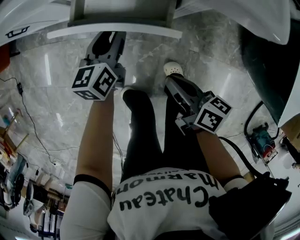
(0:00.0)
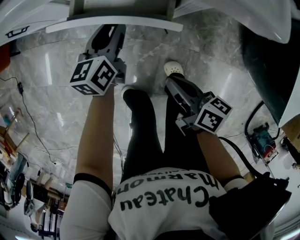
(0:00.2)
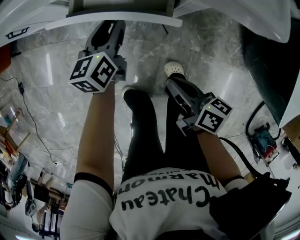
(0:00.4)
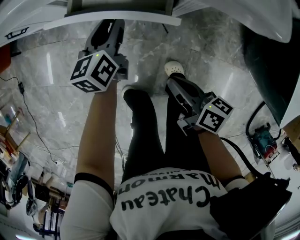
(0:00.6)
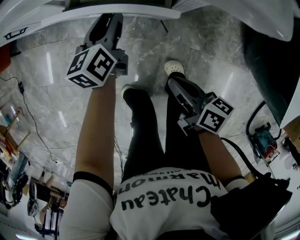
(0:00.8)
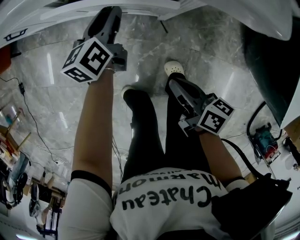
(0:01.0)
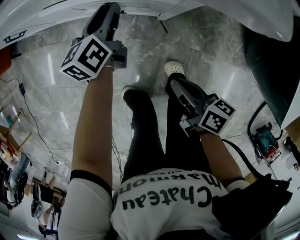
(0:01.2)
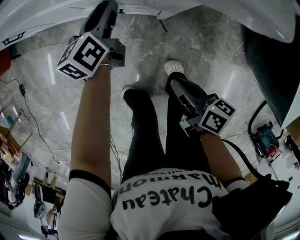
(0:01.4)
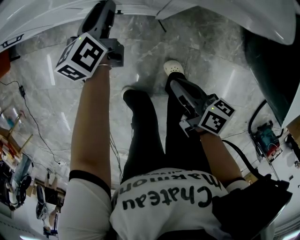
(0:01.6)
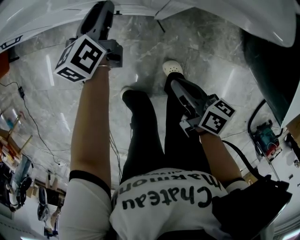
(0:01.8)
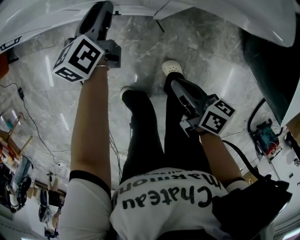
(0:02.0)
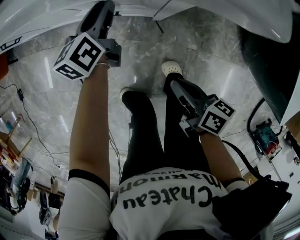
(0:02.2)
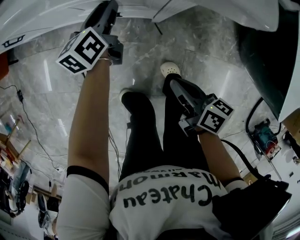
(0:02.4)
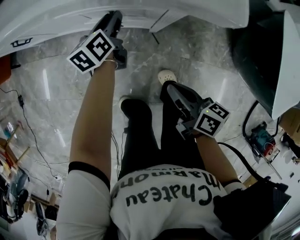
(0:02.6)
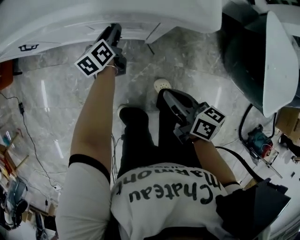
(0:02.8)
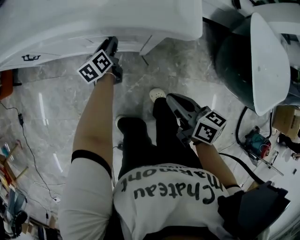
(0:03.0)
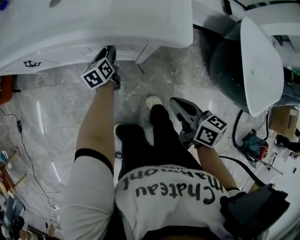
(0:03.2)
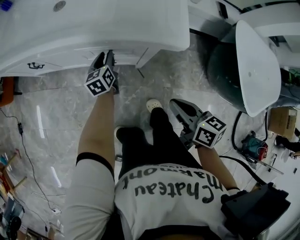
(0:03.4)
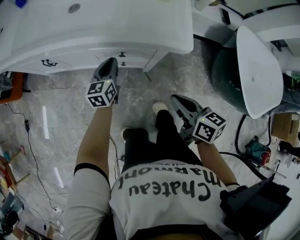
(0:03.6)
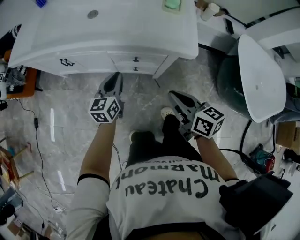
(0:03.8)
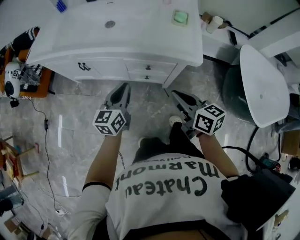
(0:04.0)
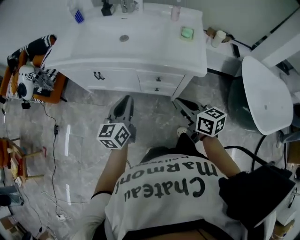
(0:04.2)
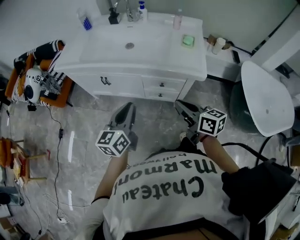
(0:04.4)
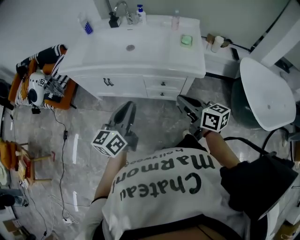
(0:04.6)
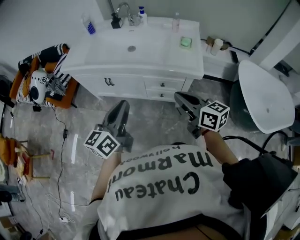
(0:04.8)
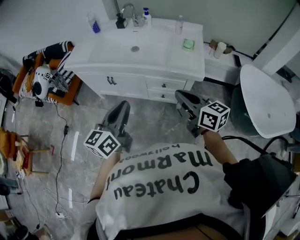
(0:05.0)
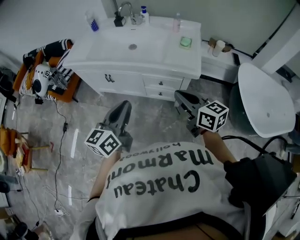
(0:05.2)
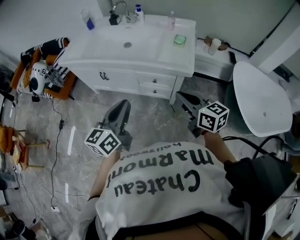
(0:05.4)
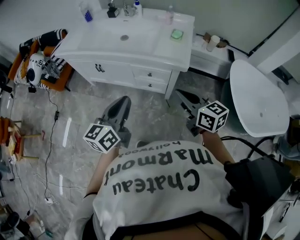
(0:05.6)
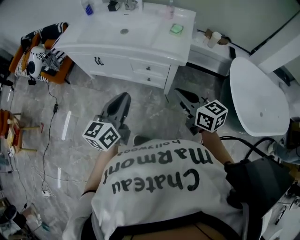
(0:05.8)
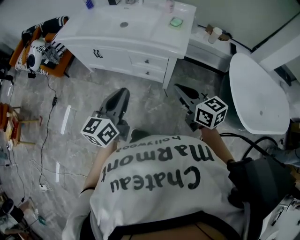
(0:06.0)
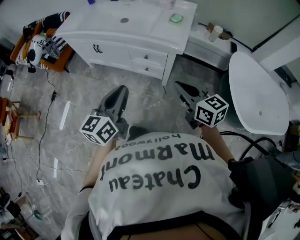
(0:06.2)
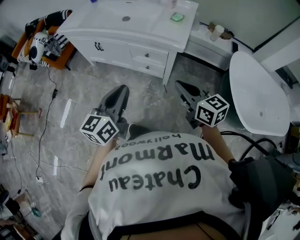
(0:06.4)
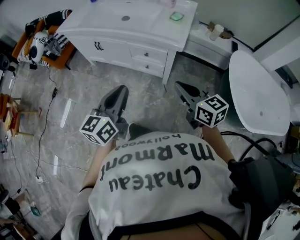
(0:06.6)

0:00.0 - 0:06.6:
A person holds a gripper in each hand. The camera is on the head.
0:00.0 - 0:01.6: The left gripper shifts roughly 10 cm forward.
0:01.6 - 0:03.2: The right gripper goes roughly 15 cm upward, and turns by roughly 20 degrees.
0:03.2 - 0:05.0: The right gripper heads upward and to the left, covering roughly 30 cm, and changes its angle by approximately 30 degrees; the left gripper shifts about 50 cm upward, backward and to the left, swivels about 30 degrees, and closes its fingers.
0:05.0 - 0:06.6: The right gripper is displaced to the right and backward by about 20 cm, while the left gripper moves backward and to the right, approximately 20 cm.

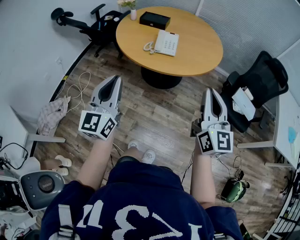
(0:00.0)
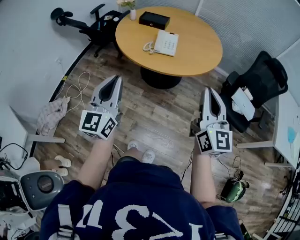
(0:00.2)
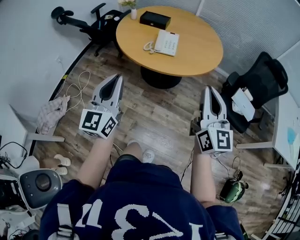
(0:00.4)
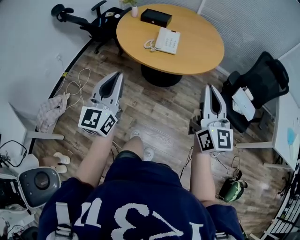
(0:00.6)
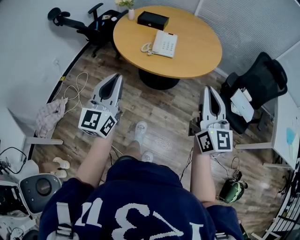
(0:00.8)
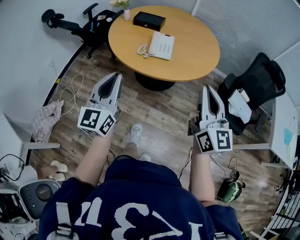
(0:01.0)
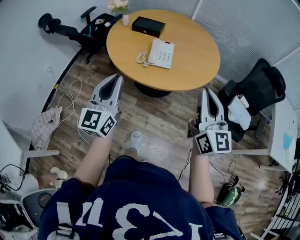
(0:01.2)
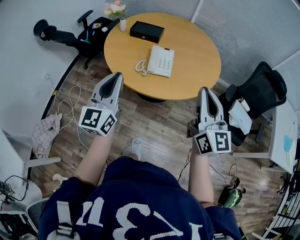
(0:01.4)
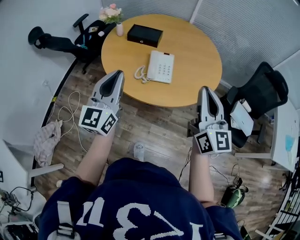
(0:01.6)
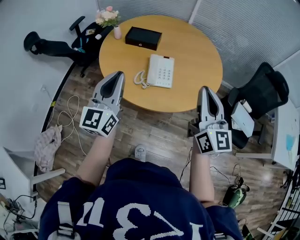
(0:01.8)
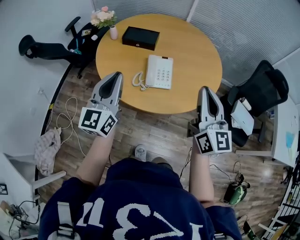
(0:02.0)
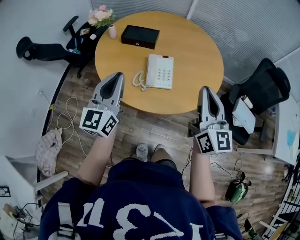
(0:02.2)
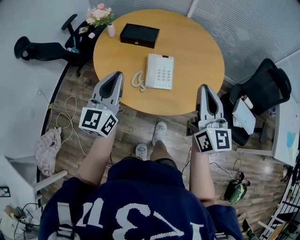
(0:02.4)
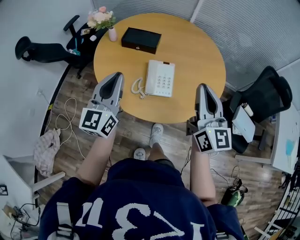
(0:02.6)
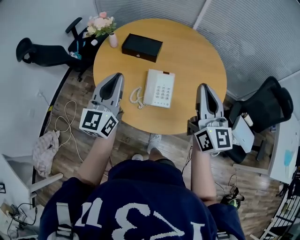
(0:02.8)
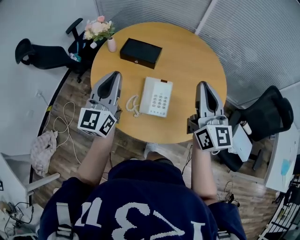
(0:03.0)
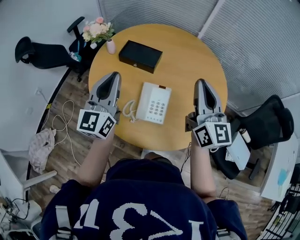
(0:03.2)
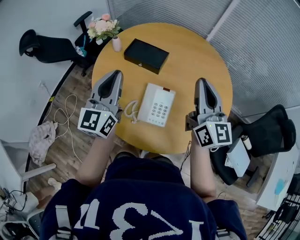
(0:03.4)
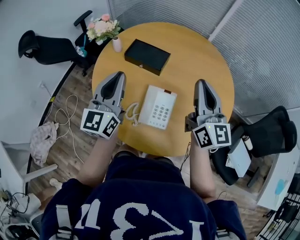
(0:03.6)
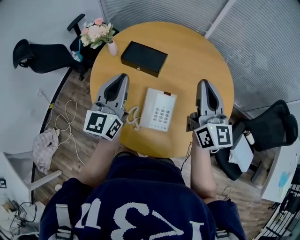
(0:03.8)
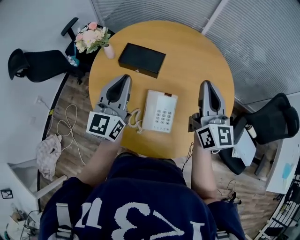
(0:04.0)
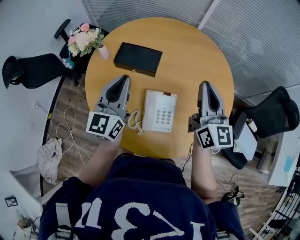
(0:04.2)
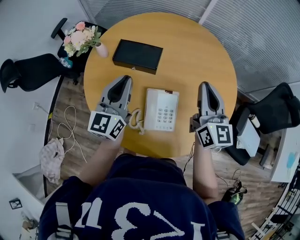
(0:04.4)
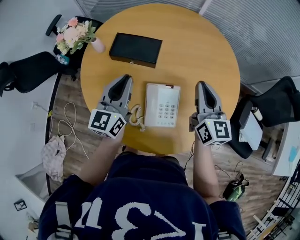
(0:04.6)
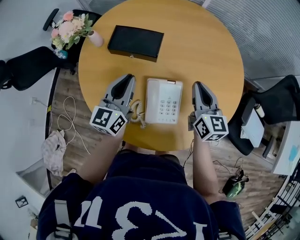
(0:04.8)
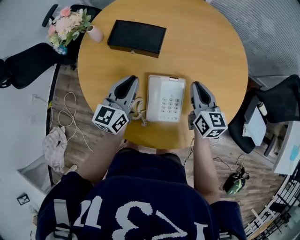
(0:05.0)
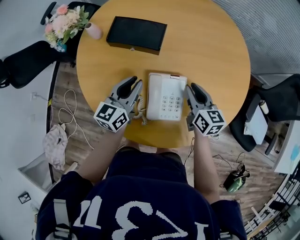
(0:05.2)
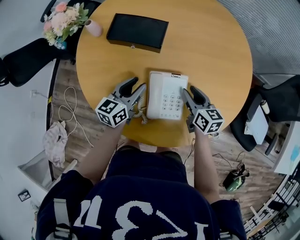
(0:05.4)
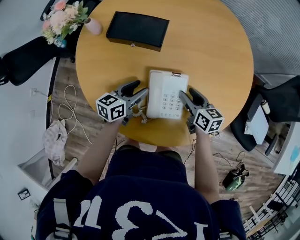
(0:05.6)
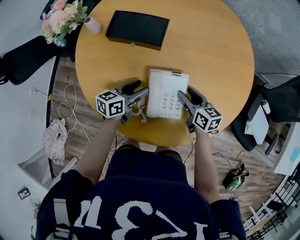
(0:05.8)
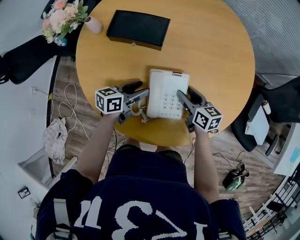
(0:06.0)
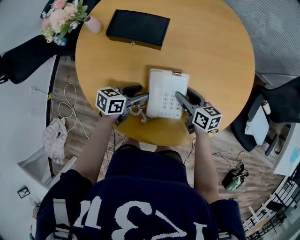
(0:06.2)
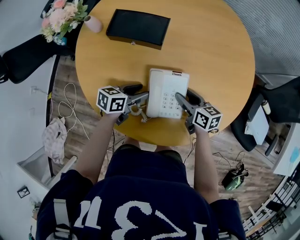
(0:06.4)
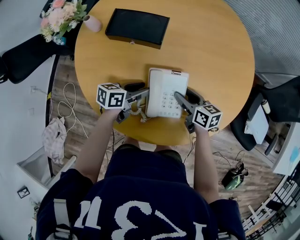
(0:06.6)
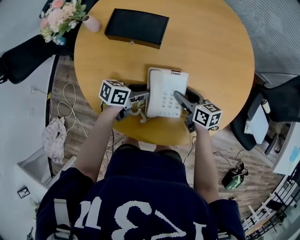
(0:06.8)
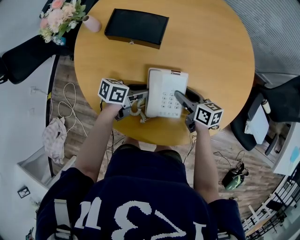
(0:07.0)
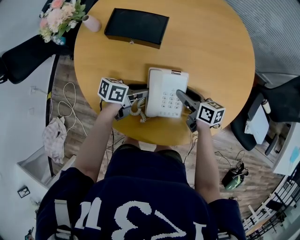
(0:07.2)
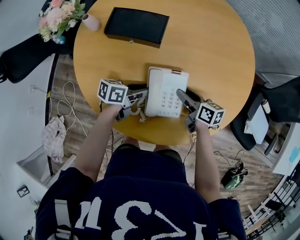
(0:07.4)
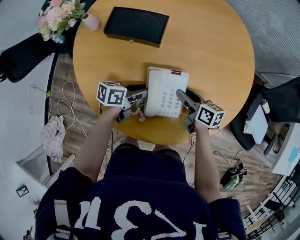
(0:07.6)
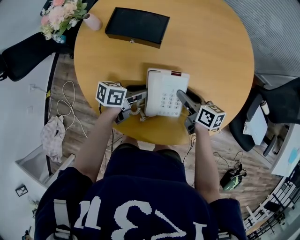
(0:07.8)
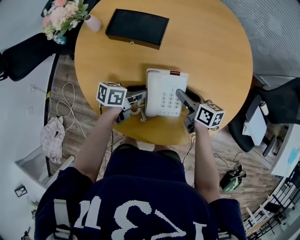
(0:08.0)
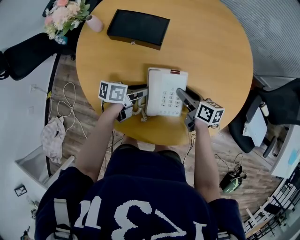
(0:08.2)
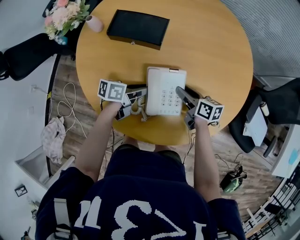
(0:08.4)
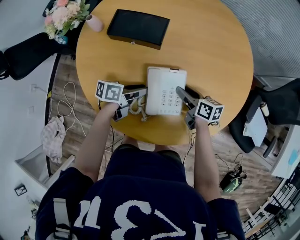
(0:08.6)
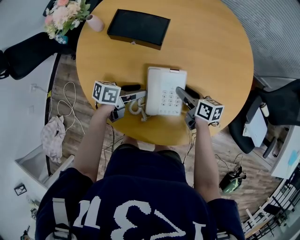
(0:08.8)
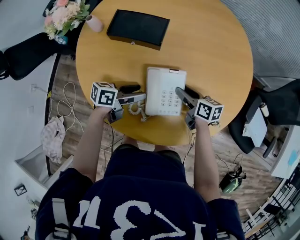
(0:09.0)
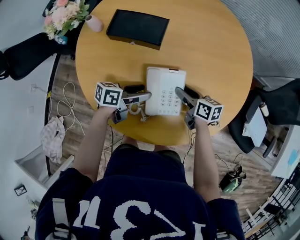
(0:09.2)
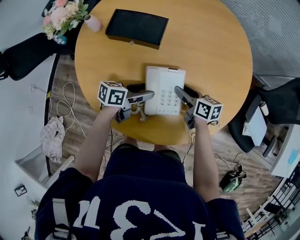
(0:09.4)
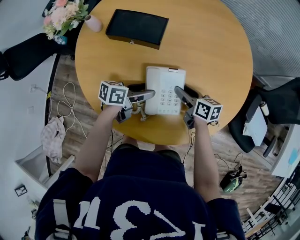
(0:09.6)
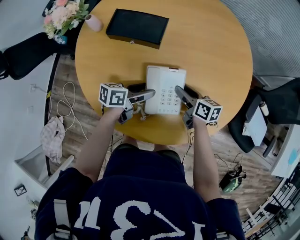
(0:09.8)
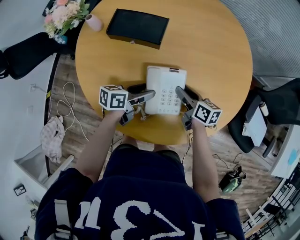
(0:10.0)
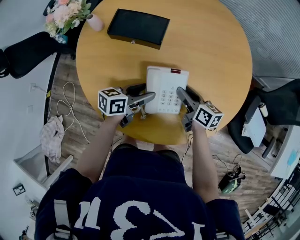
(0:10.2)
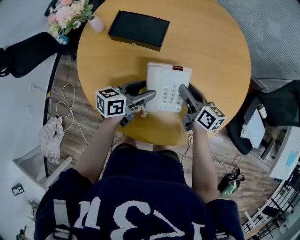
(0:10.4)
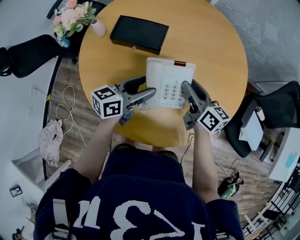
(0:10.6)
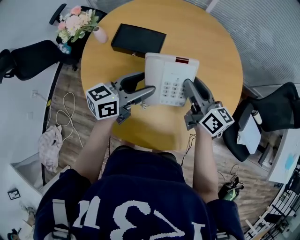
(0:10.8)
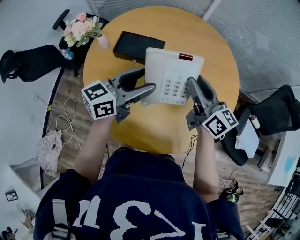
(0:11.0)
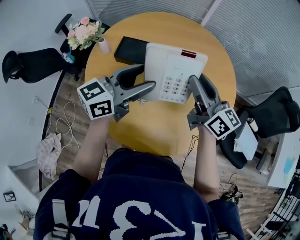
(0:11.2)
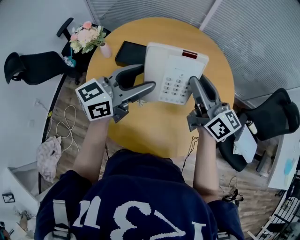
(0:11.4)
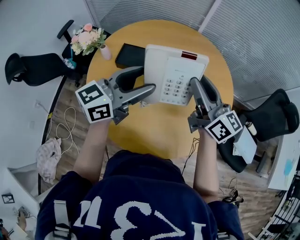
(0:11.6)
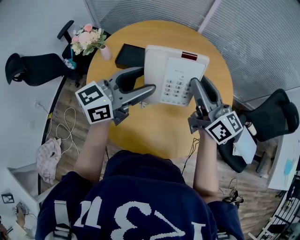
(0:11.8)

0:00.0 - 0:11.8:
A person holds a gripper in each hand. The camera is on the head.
0:00.0 - 0:01.4: The grippers both shift forward by approximately 20 cm.
0:01.4 - 0:03.0: Both grippers move forward, roughly 30 cm.
0:03.0 - 0:04.4: The grippers both shift forward and downward by roughly 15 cm.
0:04.4 - 0:06.0: The two grippers go approximately 25 cm downward. The left gripper rotates some 60 degrees, and opens its fingers. The right gripper angles its fingers downward, by about 30 degrees, and opens.
0:06.0 - 0:08.8: The grippers move only a little.
0:08.8 - 0:10.4: Both grippers travel together upward, about 5 cm.
0:10.4 - 0:11.8: Both grippers travel together upward, some 25 cm. The right gripper rotates about 30 degrees; the left gripper changes its angle by some 40 degrees.

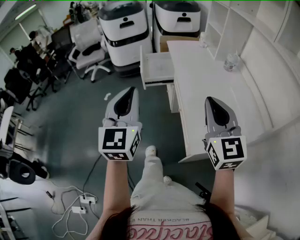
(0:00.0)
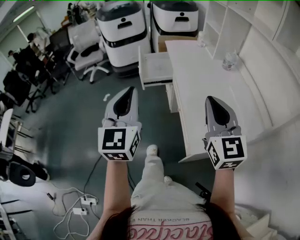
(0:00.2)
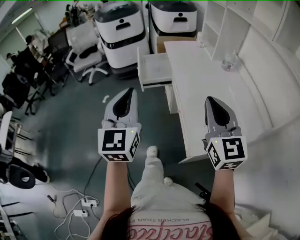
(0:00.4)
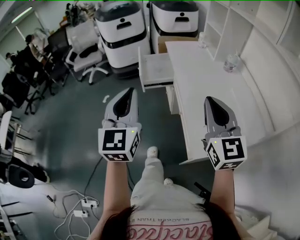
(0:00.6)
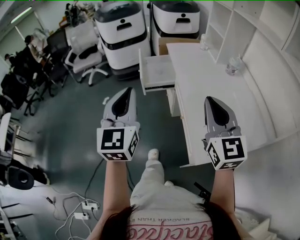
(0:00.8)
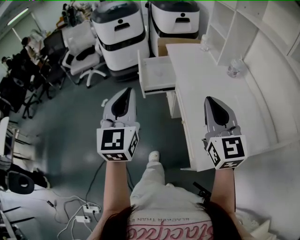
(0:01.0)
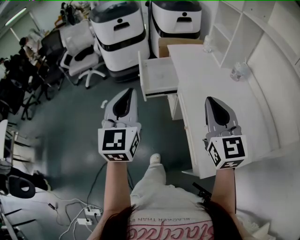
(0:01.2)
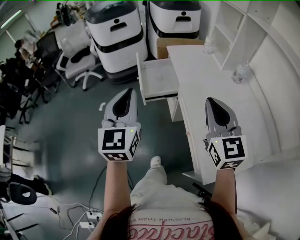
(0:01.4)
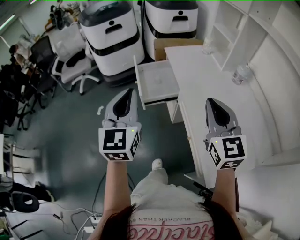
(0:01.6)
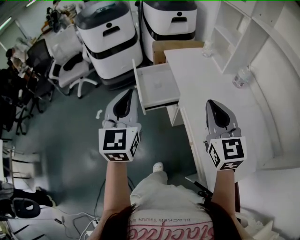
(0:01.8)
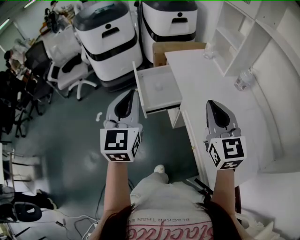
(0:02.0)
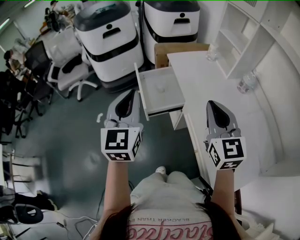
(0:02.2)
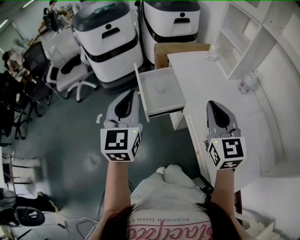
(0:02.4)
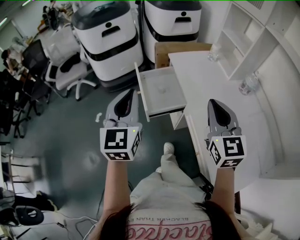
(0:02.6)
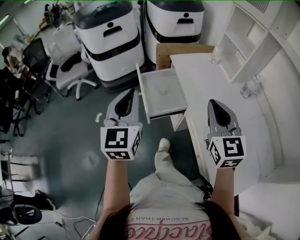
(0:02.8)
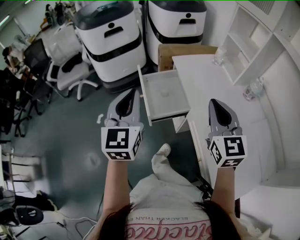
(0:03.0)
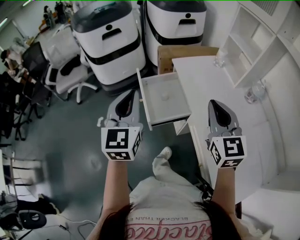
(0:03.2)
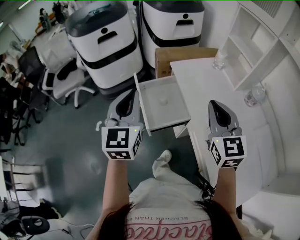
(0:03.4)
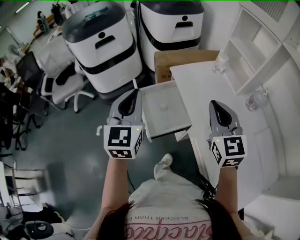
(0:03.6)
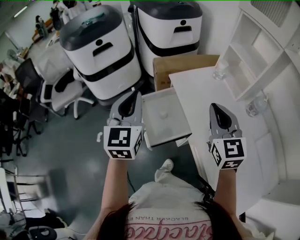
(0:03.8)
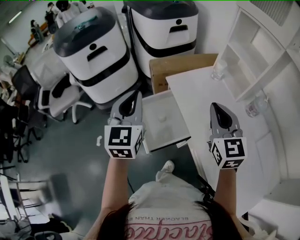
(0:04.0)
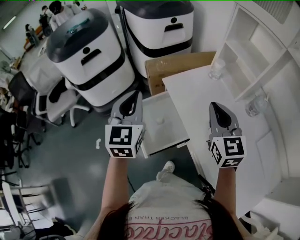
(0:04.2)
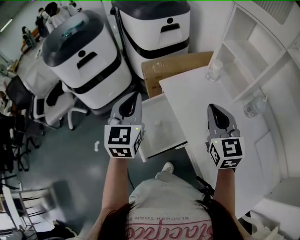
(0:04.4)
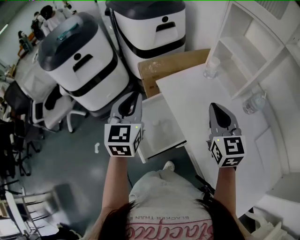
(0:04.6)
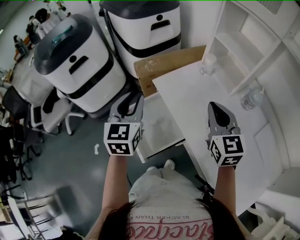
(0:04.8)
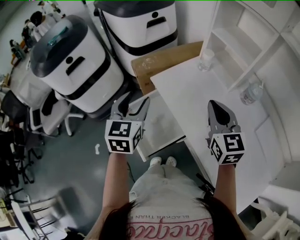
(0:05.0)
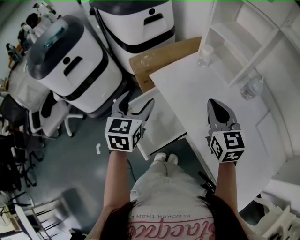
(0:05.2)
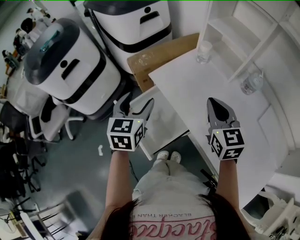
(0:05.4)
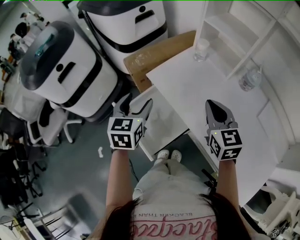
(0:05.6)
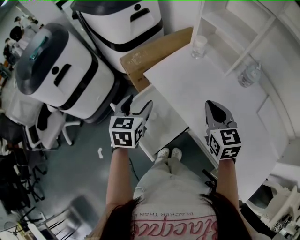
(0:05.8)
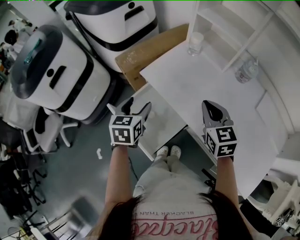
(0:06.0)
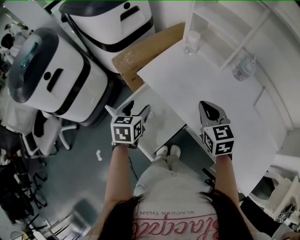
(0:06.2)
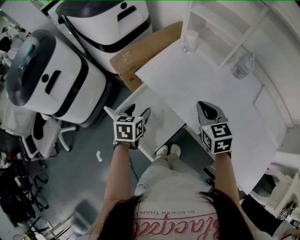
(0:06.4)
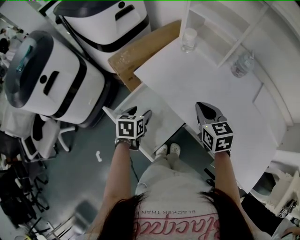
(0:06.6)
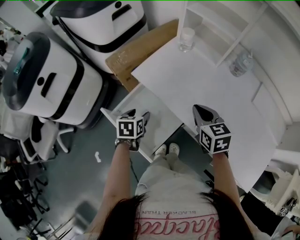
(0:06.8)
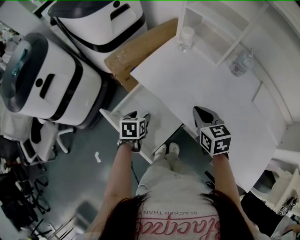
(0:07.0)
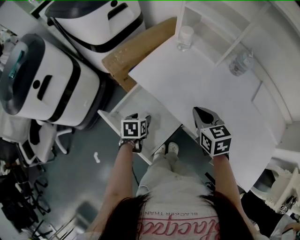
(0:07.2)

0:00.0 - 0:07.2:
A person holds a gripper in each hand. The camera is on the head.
0:00.0 - 0:01.4: The two grippers go approximately 20 cm forward.
0:01.4 - 0:02.8: The two grippers go roughly 15 cm forward.
0:02.8 - 0:04.4: Both grippers move forward, about 25 cm.
0:04.4 - 0:05.8: The left gripper moves downward, some 10 cm, swivels some 30 degrees, and opens, while the right gripper moves downward, roughly 5 cm.
0:05.8 - 0:07.2: The right gripper shifts about 10 cm downward. The left gripper moves downward, approximately 20 cm, and swivels approximately 30 degrees.
